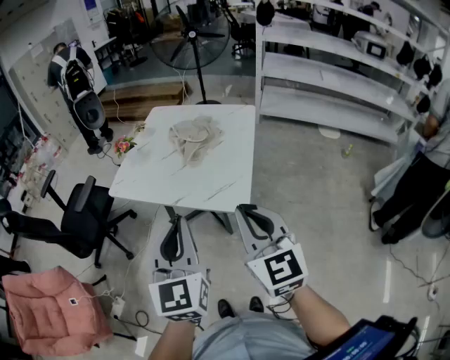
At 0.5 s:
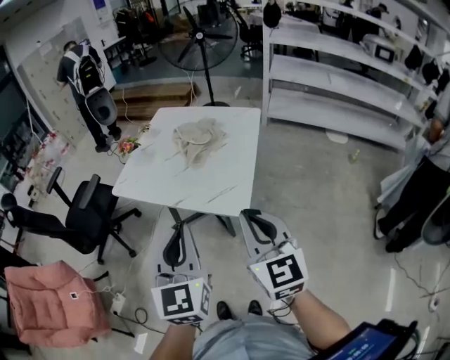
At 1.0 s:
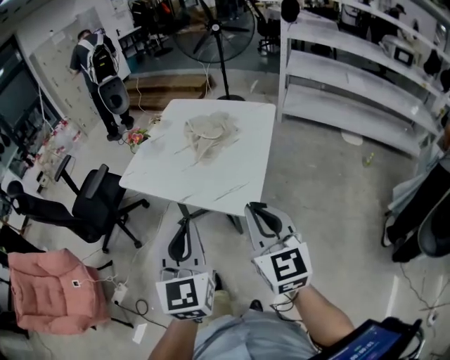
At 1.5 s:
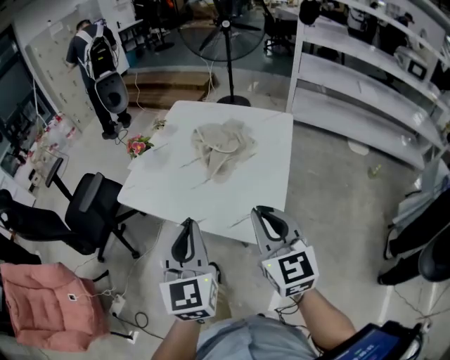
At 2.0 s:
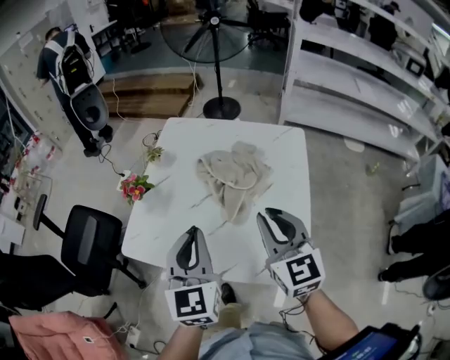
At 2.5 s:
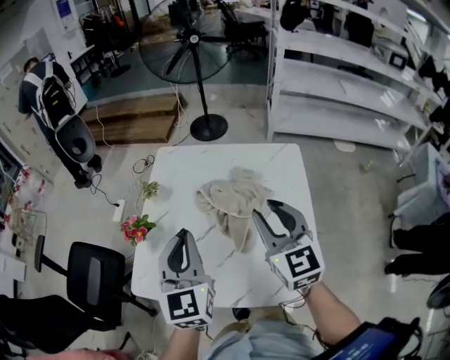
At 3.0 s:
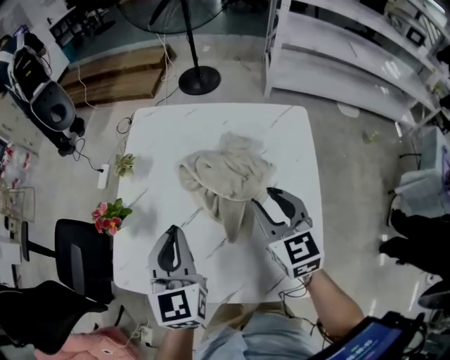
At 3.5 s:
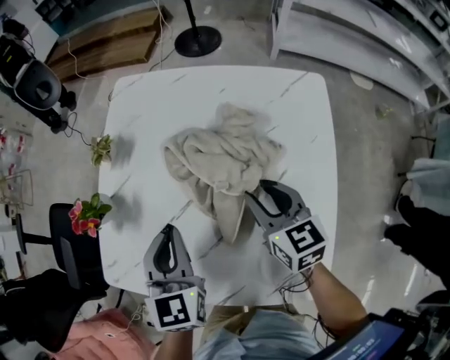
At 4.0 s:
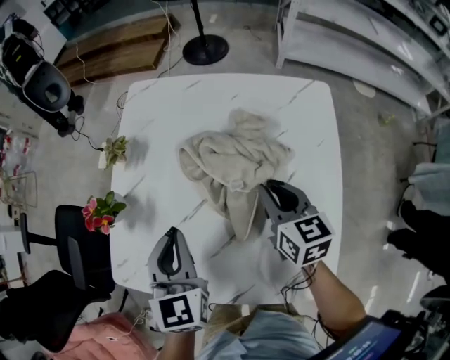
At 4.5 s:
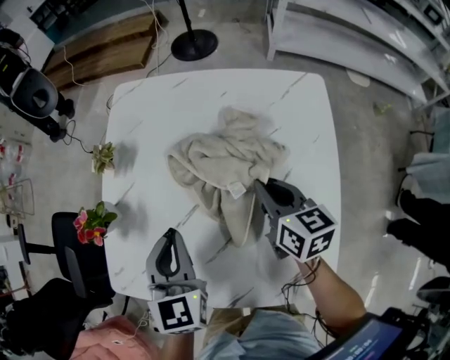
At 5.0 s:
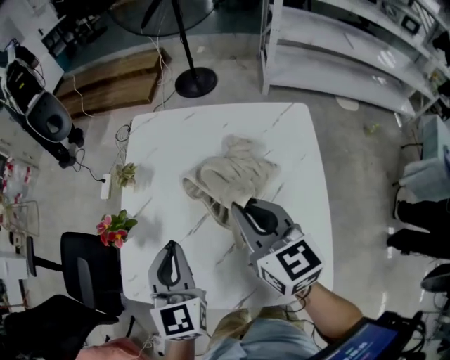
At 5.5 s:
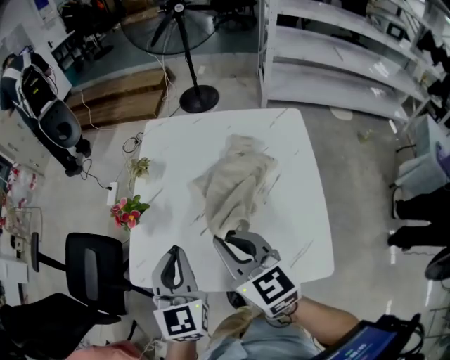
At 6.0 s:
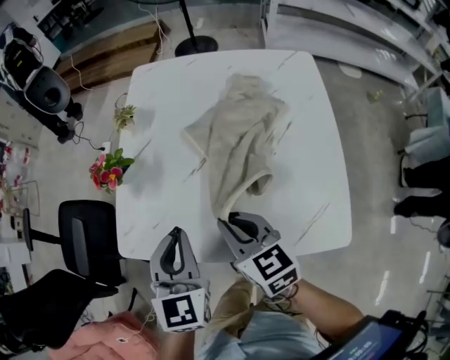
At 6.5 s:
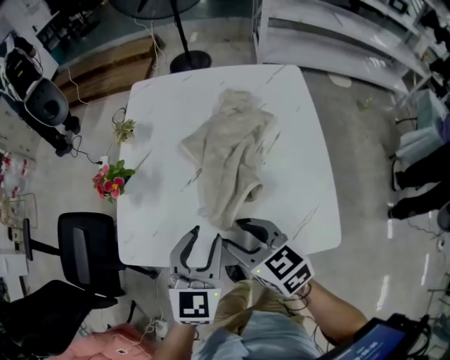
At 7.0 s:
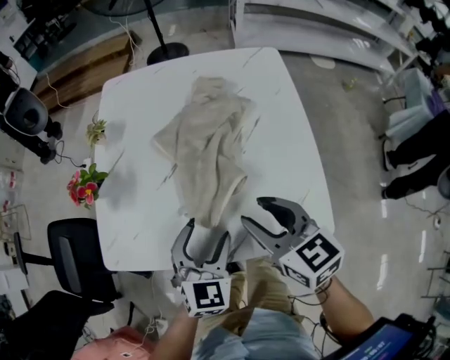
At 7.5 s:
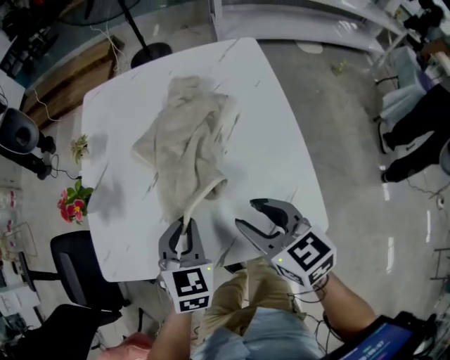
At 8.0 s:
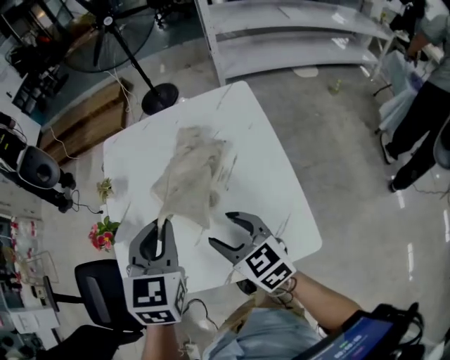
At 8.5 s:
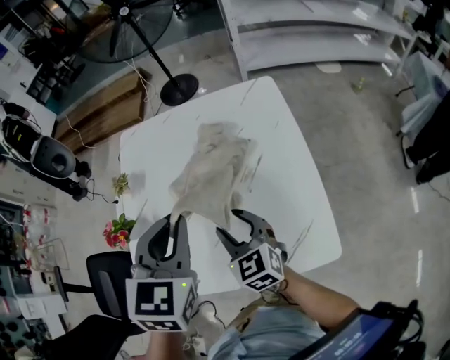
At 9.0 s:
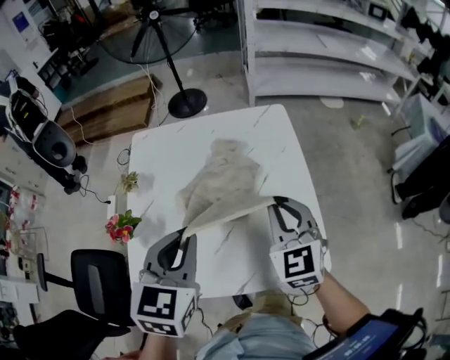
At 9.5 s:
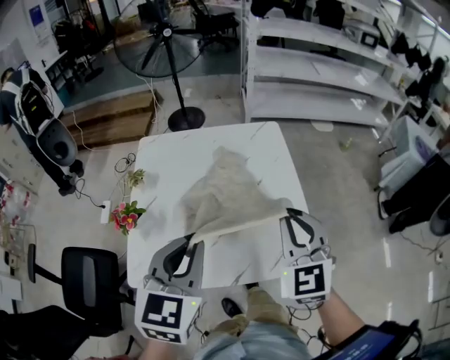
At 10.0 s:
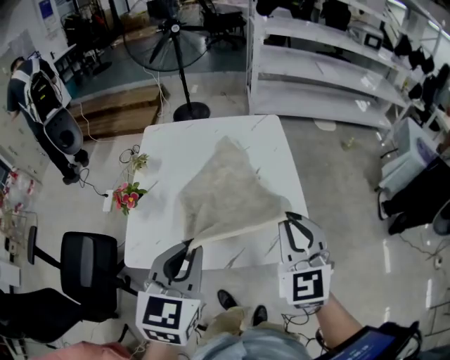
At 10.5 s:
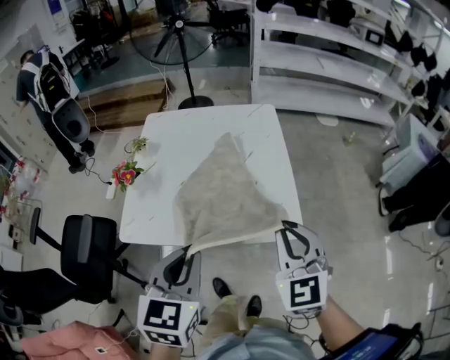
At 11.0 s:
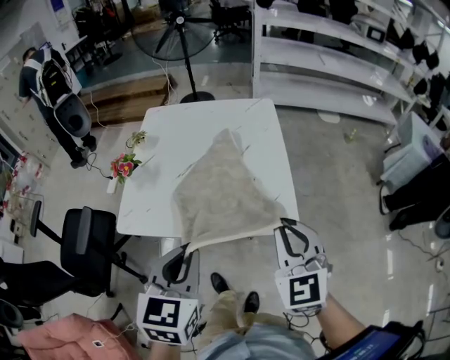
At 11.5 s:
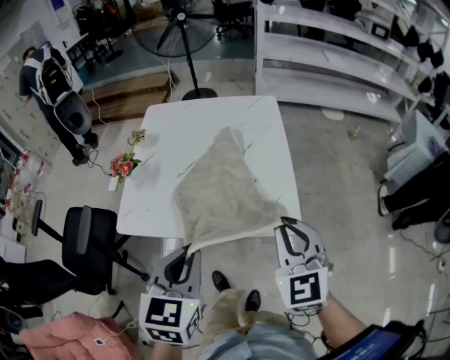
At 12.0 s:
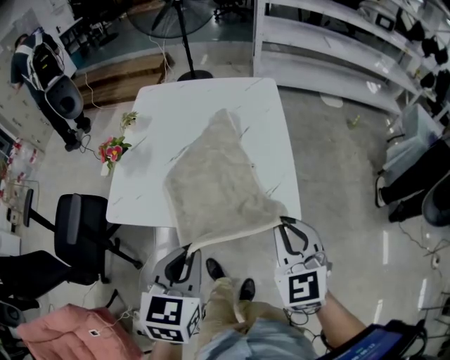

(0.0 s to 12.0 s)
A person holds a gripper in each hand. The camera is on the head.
0.0 s - 2.0 s: Both grippers move forward, approximately 35 cm.
2.0 s - 4.0 s: The right gripper shifts about 25 cm downward and forward, and turns by about 30 degrees, while the left gripper goes approximately 20 cm forward and downward.
4.0 s - 6.0 s: The left gripper heads backward and to the left, covering some 15 cm; the right gripper is displaced to the left and backward by approximately 25 cm.
6.0 s - 8.0 s: The right gripper is displaced to the right by some 10 cm, and opens; the left gripper is displaced to the right, upward and forward by approximately 15 cm, changes its angle by some 20 degrees, and opens, then closes again.
8.0 s - 10.0 s: The right gripper is displaced upward, backward and to the right by about 20 cm, swivels about 40 degrees, and closes. The left gripper goes about 15 cm backward.
10.0 s - 12.0 s: Both grippers travel together backward, downward and to the right, about 15 cm.

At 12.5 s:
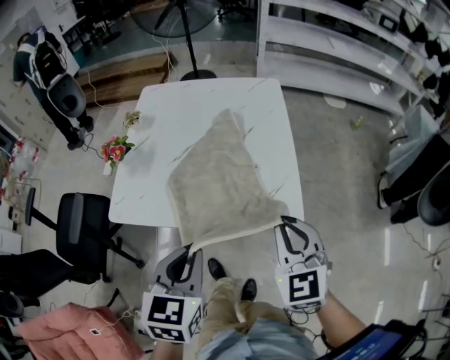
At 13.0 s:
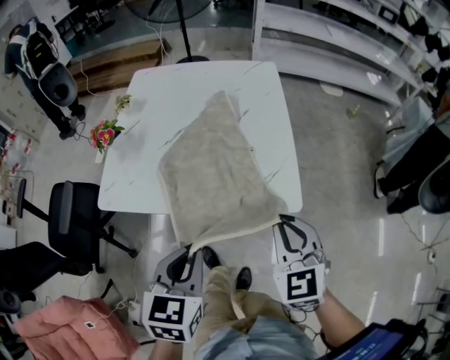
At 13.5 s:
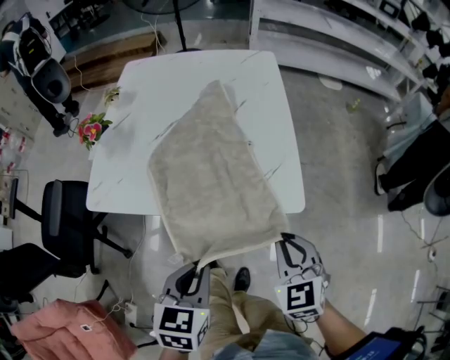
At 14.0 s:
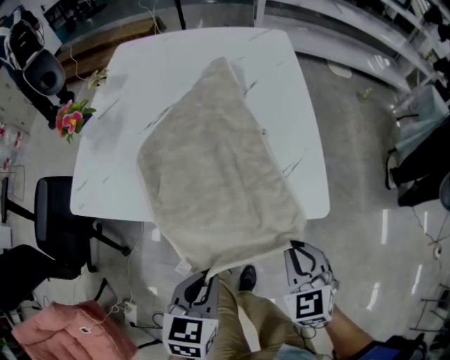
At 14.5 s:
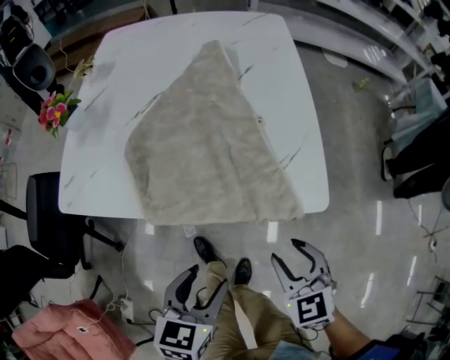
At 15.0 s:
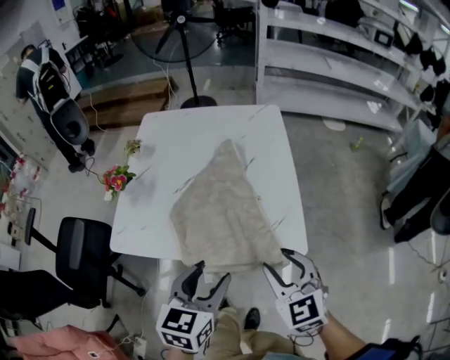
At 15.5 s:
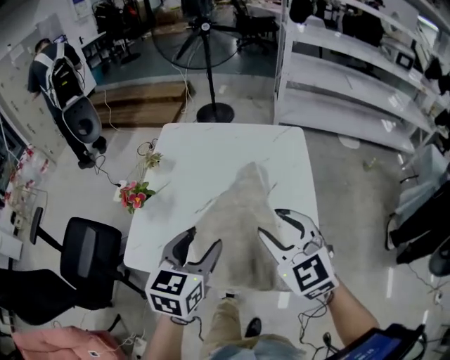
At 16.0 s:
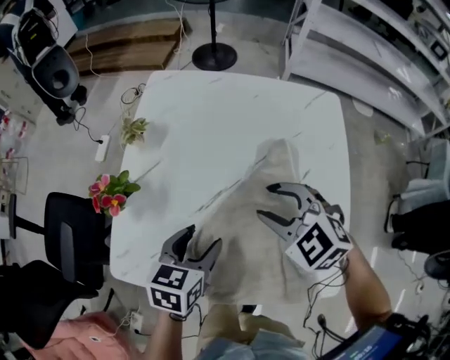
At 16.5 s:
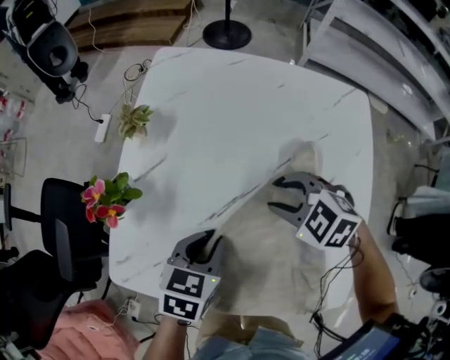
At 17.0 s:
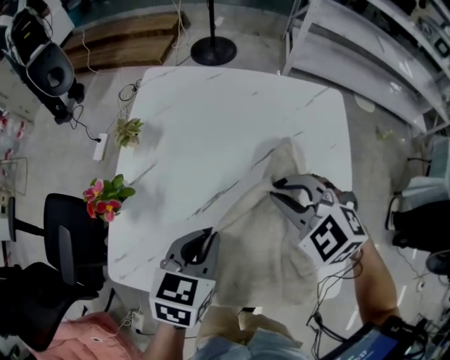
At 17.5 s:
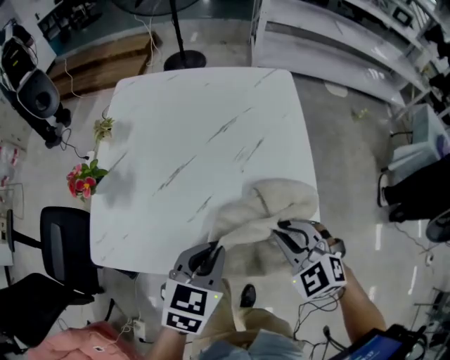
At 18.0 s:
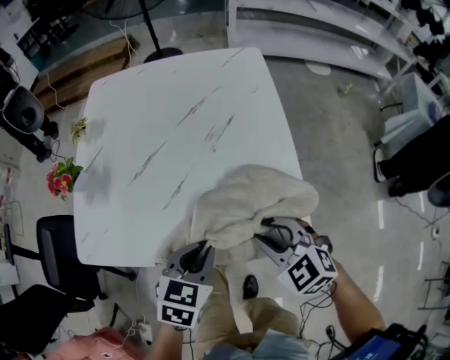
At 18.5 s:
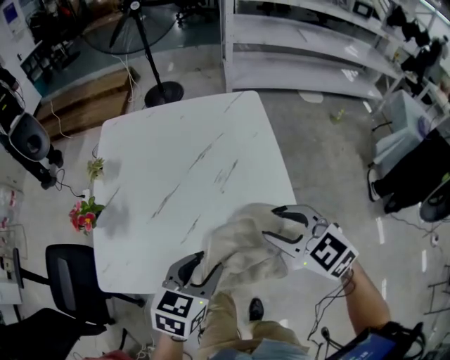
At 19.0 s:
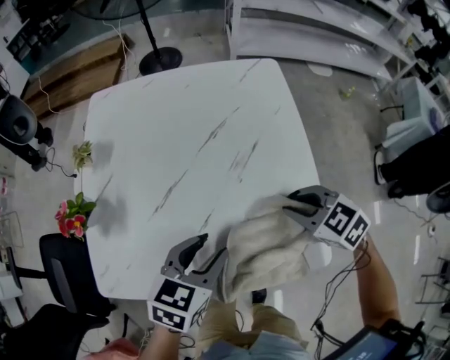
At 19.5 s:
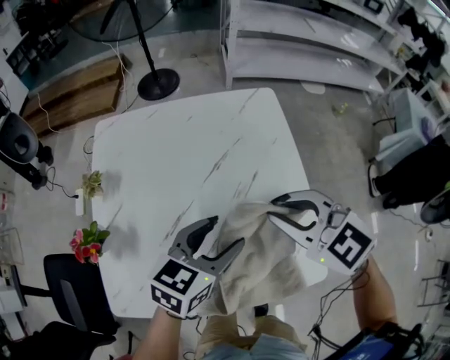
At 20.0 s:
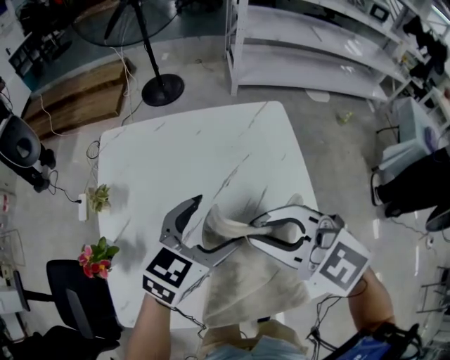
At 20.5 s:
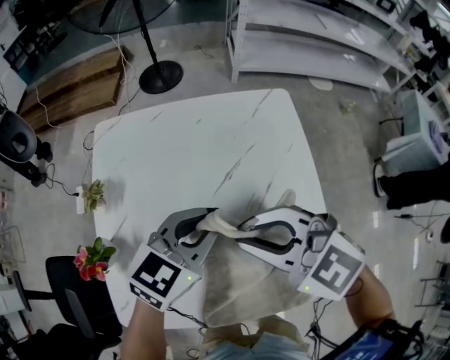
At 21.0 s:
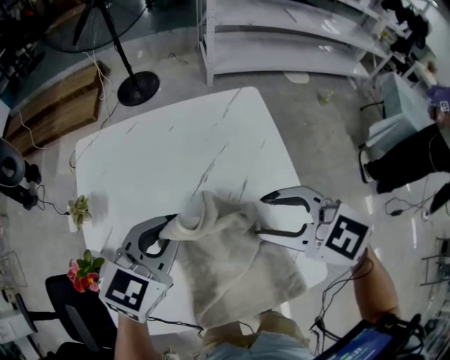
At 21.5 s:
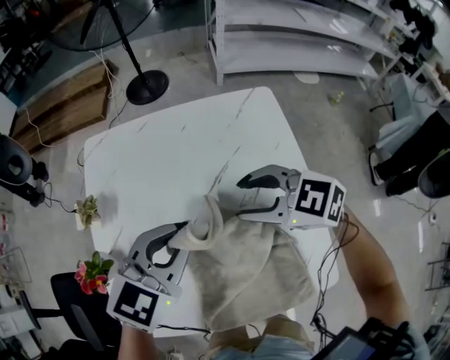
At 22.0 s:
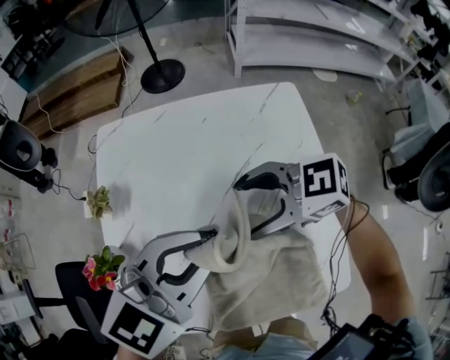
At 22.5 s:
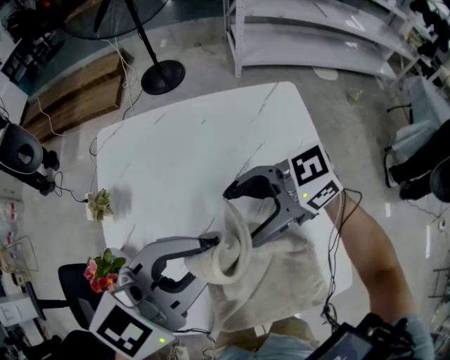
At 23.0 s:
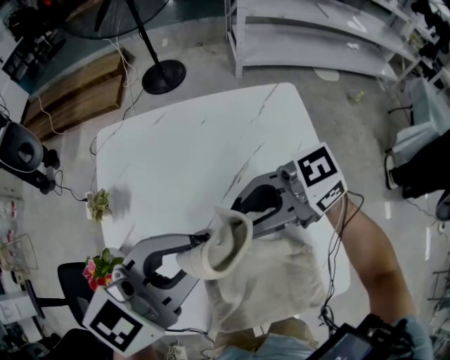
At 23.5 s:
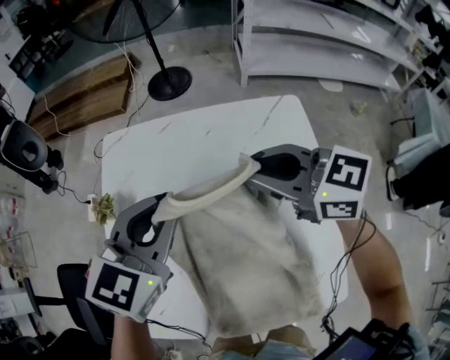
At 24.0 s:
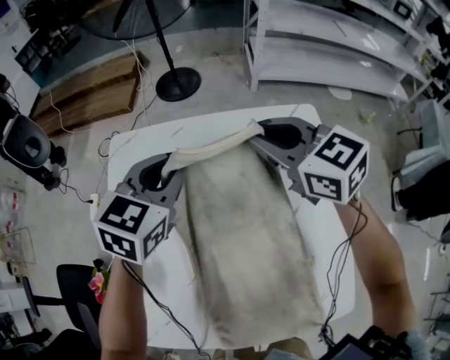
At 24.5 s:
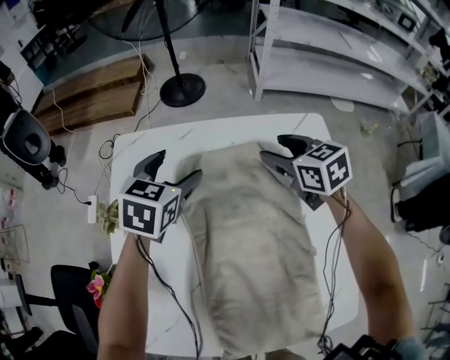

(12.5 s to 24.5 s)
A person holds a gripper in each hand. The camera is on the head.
12.5 s - 14.5 s: Both grippers travel together downward, approximately 20 cm. The right gripper opens up, while the left gripper opens.
14.5 s - 16.5 s: The right gripper reaches roughly 25 cm upward, then returns, and changes its angle by about 50 degrees. The left gripper goes upward and returns, some 20 cm each way, and closes.
16.5 s - 18.5 s: The grippers both shift backward, to the right and upward by roughly 25 cm. The left gripper changes its angle by about 20 degrees; the right gripper turns by some 40 degrees, and closes and opens again.
18.5 s - 20.5 s: The right gripper goes some 20 cm to the left and forward, reaches some 10 cm downward, then returns, and closes up; the left gripper goes about 20 cm forward, swivels roughly 20 degrees, and closes.
20.5 s - 22.5 s: The left gripper travels upward by approximately 10 cm; the right gripper travels downward by roughly 5 cm, changes its angle by roughly 50 degrees, and opens up.
22.5 s - 24.5 s: The left gripper changes place by some 30 cm, turns by about 40 degrees, and opens up. Meanwhile the right gripper changes place by about 25 cm, swivels roughly 60 degrees, and closes, then opens again.

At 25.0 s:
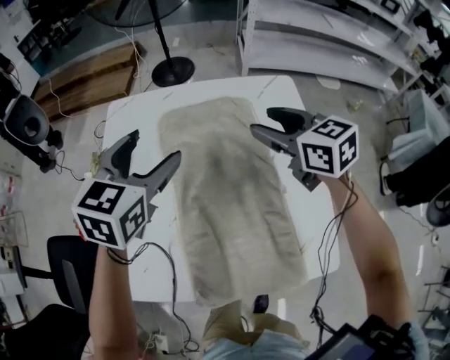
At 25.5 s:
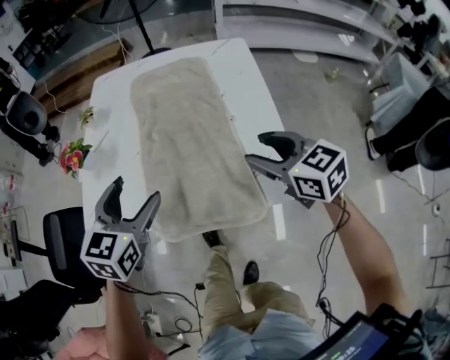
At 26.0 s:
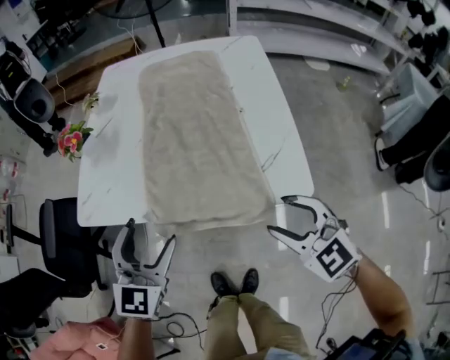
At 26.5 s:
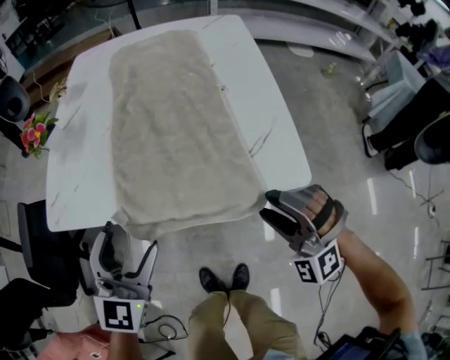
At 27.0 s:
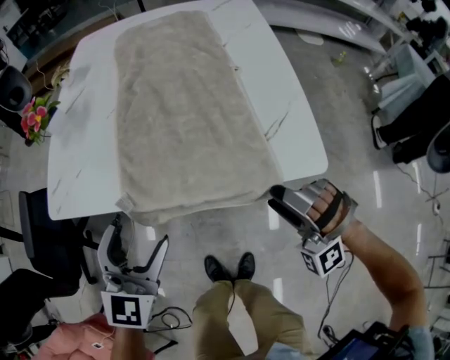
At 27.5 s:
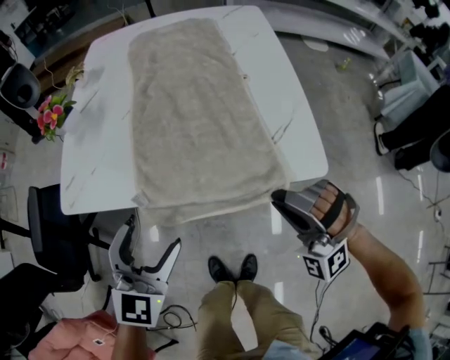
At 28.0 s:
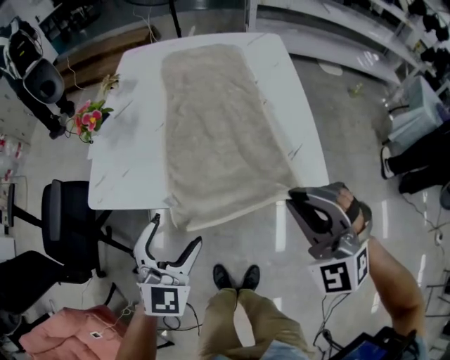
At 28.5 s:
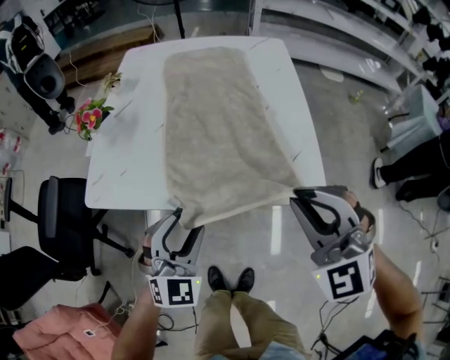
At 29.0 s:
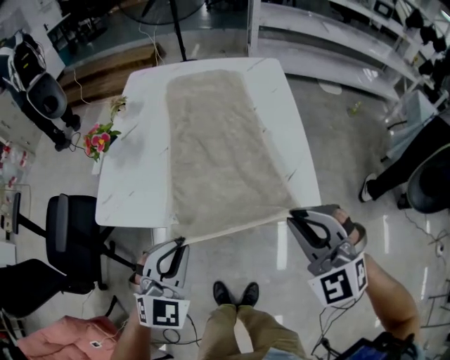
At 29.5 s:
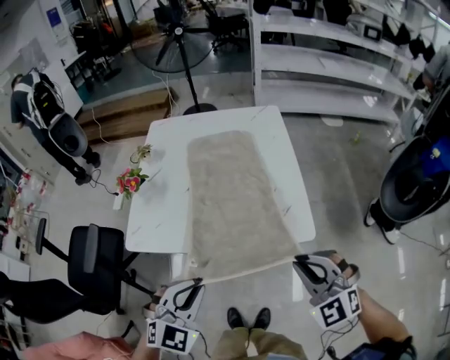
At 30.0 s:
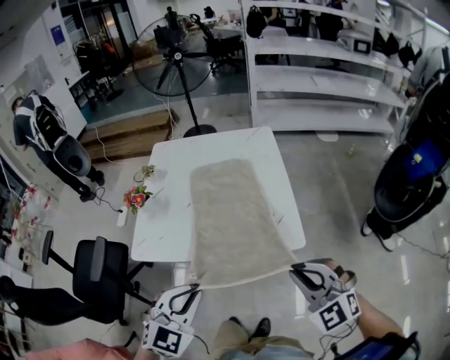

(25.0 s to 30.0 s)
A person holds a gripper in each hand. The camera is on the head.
25.0 s - 27.5 s: The pair of grippers is taken backward, about 40 cm. The right gripper rotates around the line of its fingers by roughly 90 degrees, counterclockwise from behind, and closes its fingers.
27.5 s - 30.0 s: The right gripper is displaced upward by approximately 20 cm, and twists some 40 degrees clockwise, seen from behind; the left gripper travels upward and backward by about 20 cm, and closes up.
